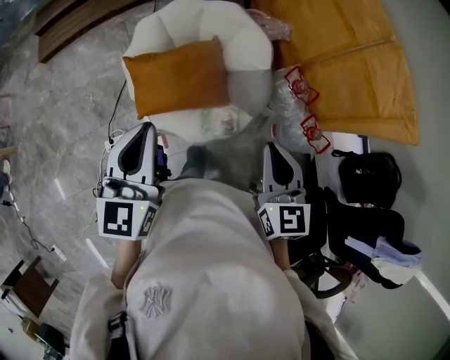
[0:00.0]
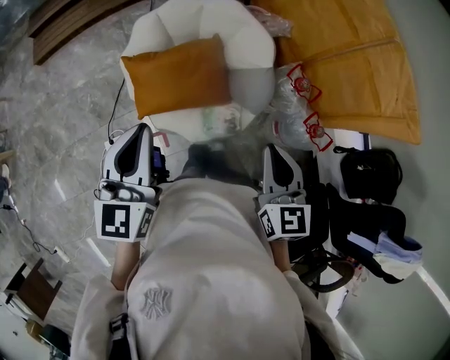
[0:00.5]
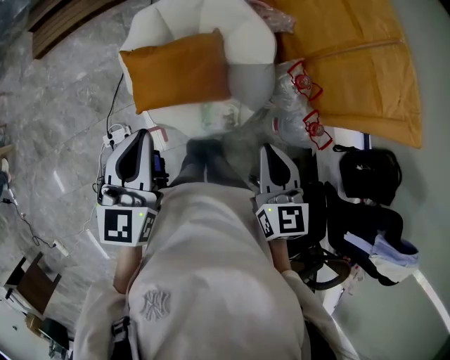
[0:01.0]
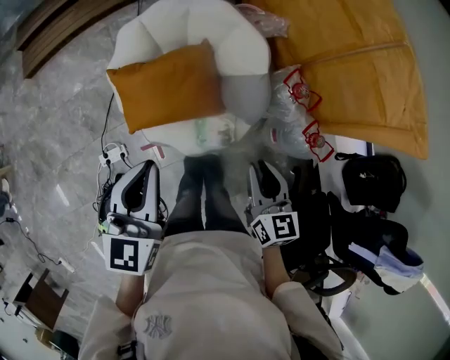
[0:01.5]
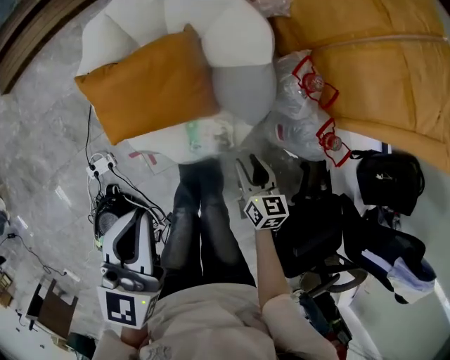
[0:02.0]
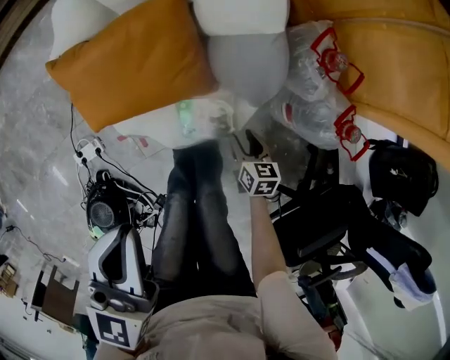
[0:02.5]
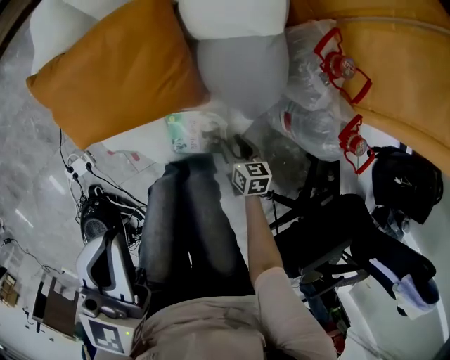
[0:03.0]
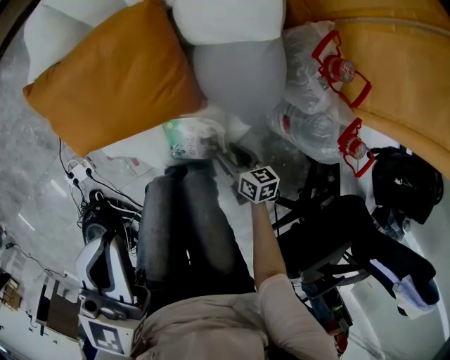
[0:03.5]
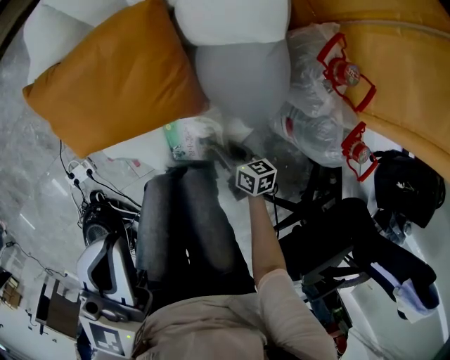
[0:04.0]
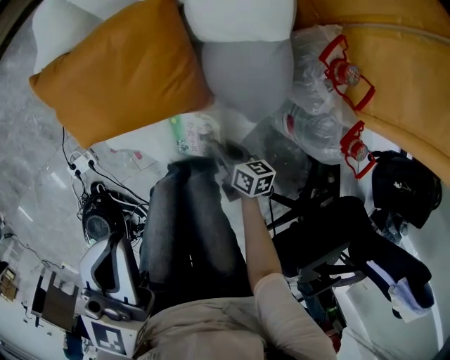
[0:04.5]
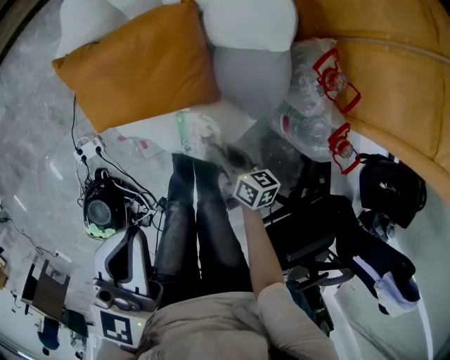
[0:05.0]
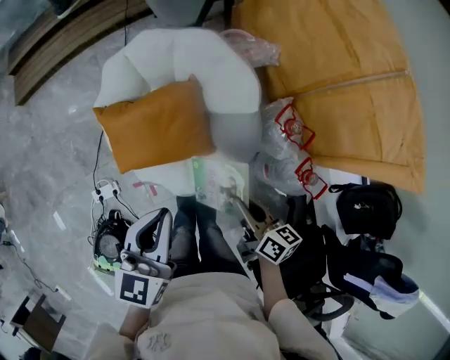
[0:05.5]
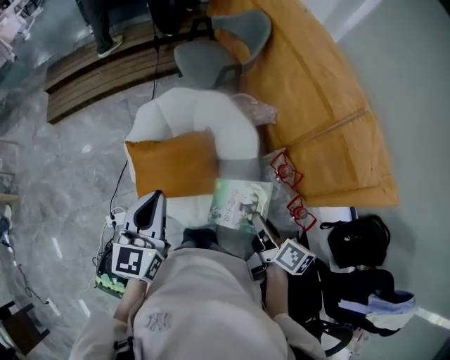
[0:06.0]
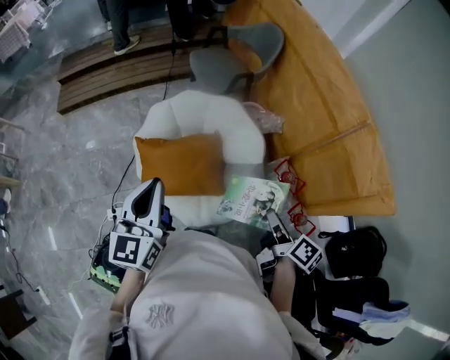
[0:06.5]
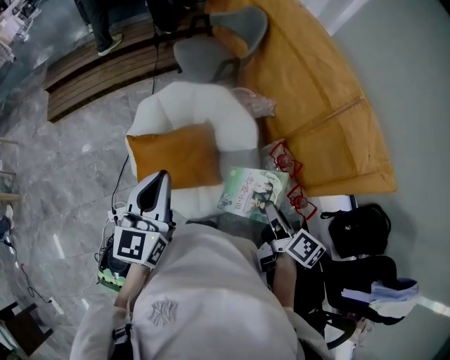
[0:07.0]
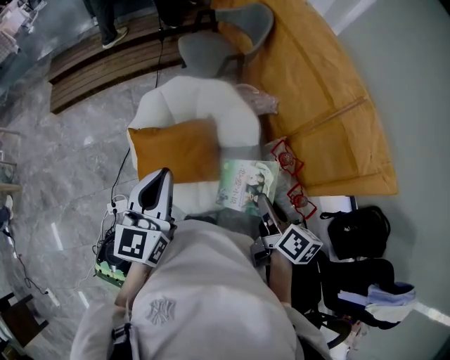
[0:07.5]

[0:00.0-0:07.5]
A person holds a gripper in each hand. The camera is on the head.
0:00.0 to 0:02.0: The right gripper goes some 35 cm downward, rotates approximately 30 degrees, and opens its fingers. The left gripper heads downward, covering some 15 cm.
0:02.0 to 0:04.0: The right gripper is displaced downward by about 30 cm, and turns by approximately 30 degrees, while the left gripper moves downward, some 15 cm.
0:04.0 to 0:05.5: The right gripper heads upward, covering some 40 cm, while the left gripper moves upward, about 15 cm.
0:05.5 to 0:07.5: The two grippers go some 20 cm upward.

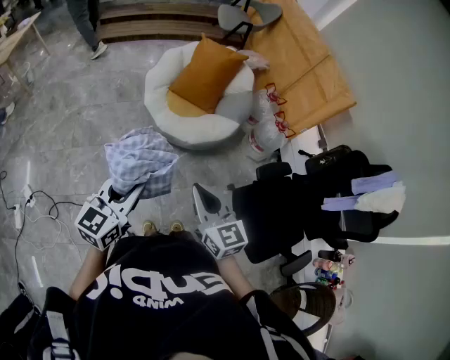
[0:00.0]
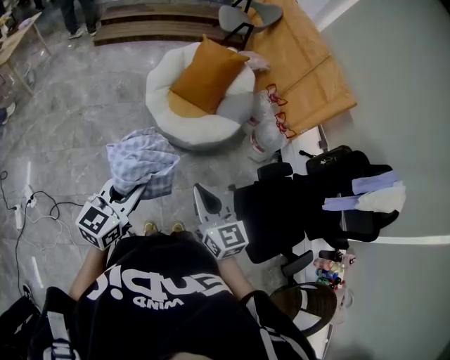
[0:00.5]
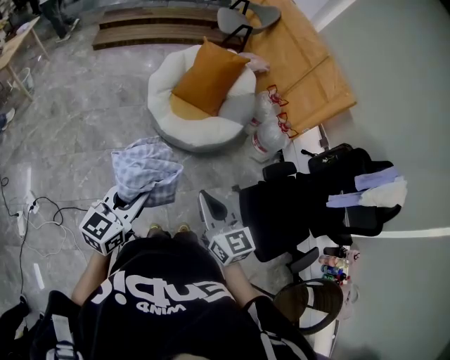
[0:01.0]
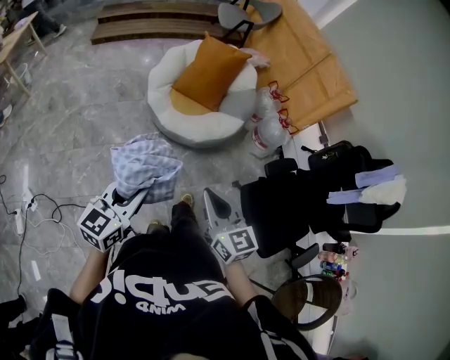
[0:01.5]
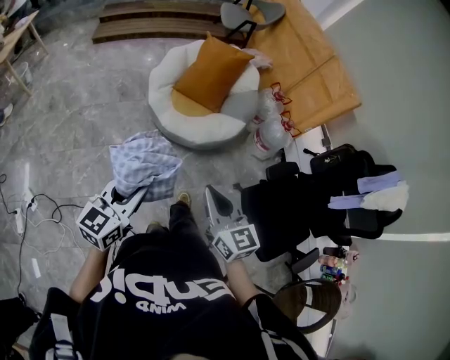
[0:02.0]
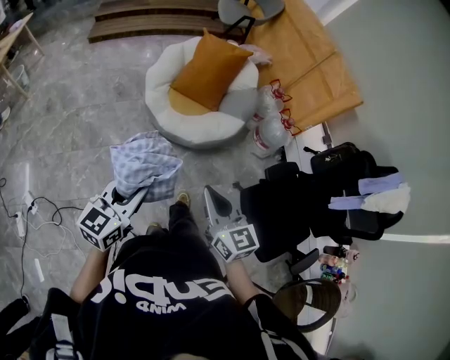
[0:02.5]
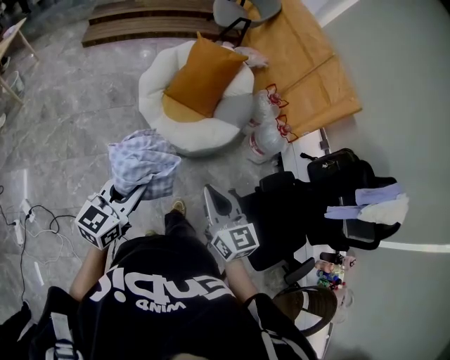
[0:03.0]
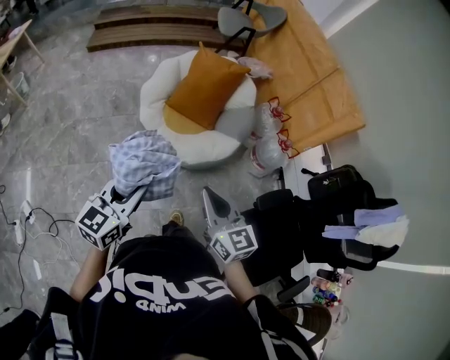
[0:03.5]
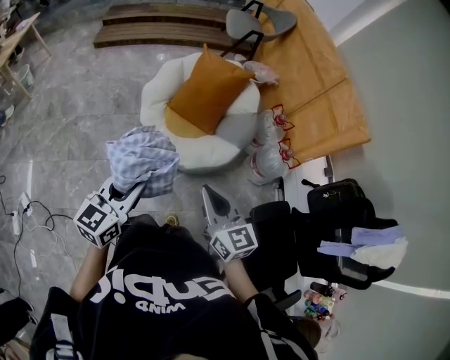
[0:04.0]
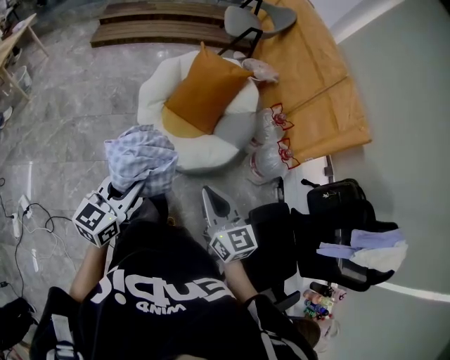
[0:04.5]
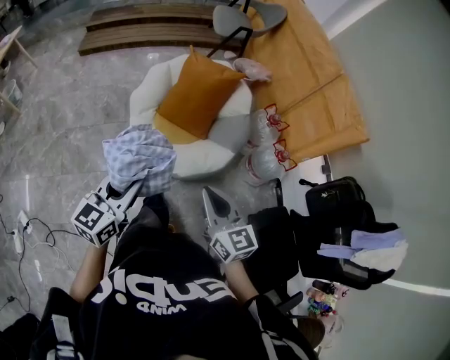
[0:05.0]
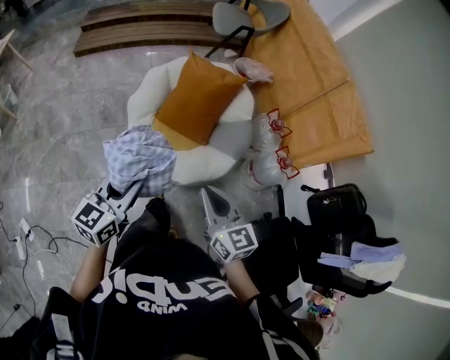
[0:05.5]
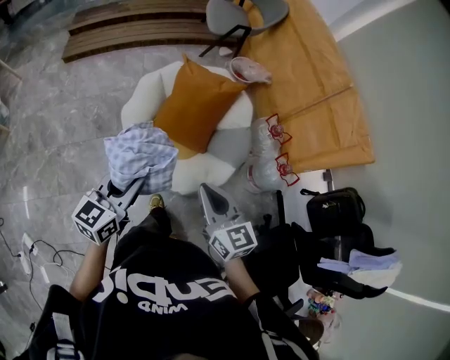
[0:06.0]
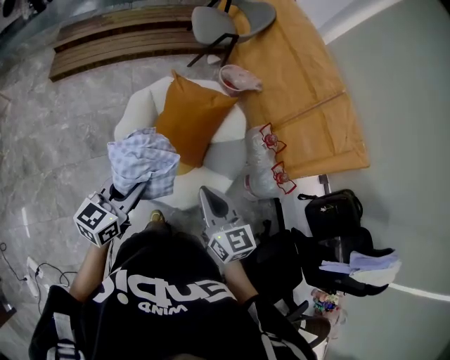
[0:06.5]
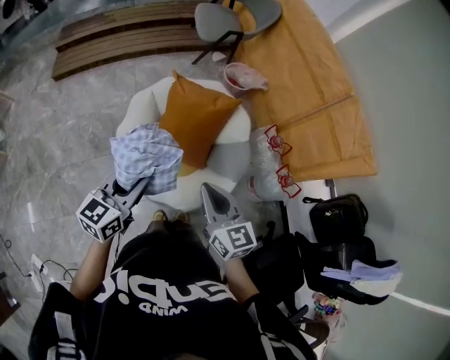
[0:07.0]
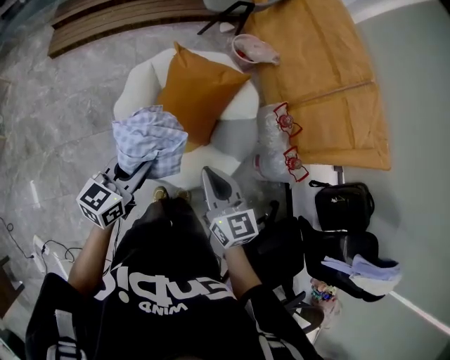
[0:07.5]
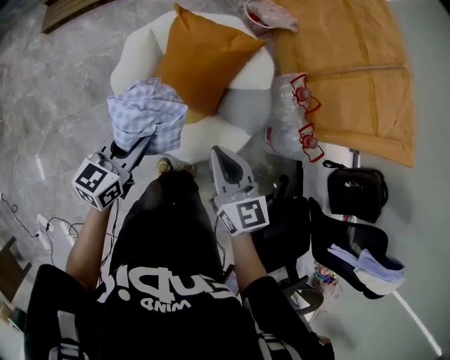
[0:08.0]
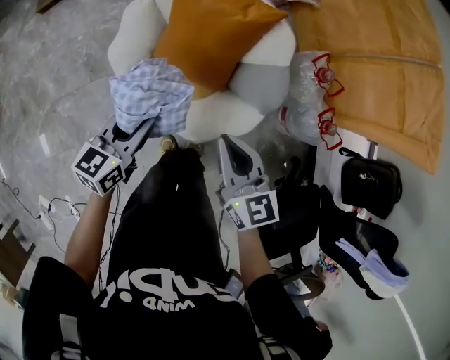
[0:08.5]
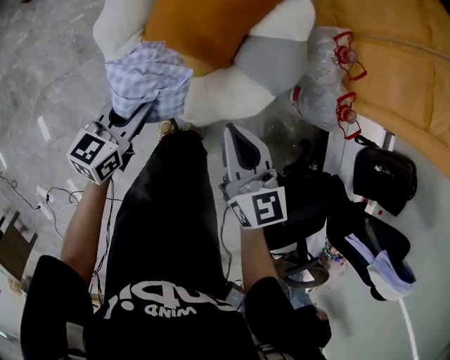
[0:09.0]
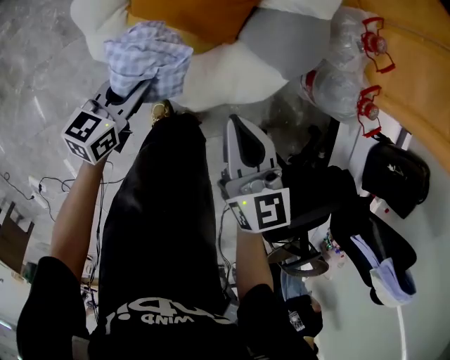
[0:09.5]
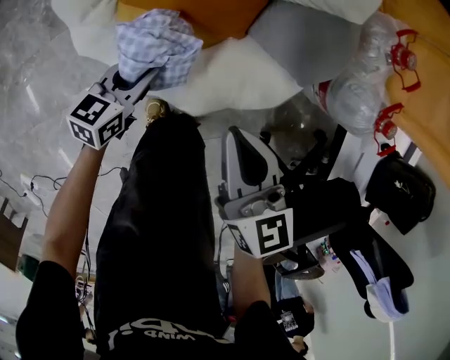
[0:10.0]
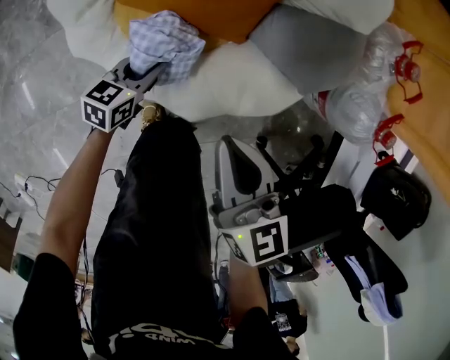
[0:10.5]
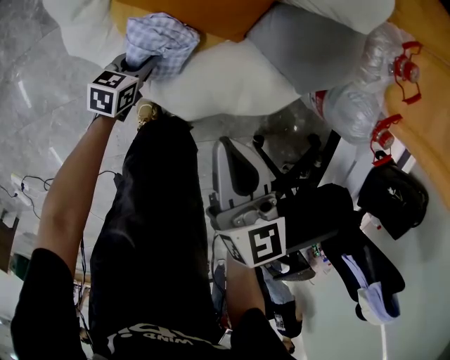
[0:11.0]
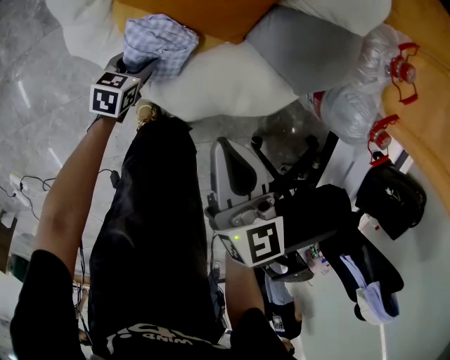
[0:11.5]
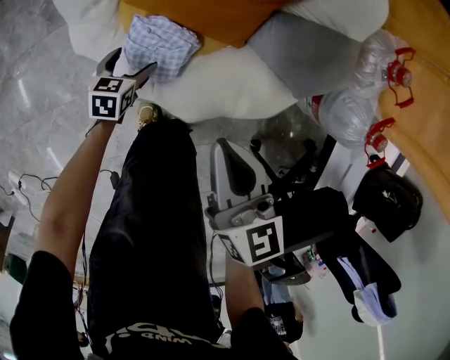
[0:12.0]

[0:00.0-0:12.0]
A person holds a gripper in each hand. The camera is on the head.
0:00.0 to 0:02.0: The left gripper shifts about 5 cm to the left.
0:02.0 to 0:04.0: The grippers both shift forward by approximately 20 cm.
0:04.0 to 0:06.0: Both grippers travel together forward, roughly 30 cm.
0:06.0 to 0:08.0: The grippers both shift forward and downward by roughly 20 cm.
0:08.0 to 0:10.0: Both grippers move downward, approximately 40 cm.
0:10.0 to 0:12.0: The left gripper shifts approximately 15 cm downward and to the left, changes its angle by roughly 30 degrees, and opens.

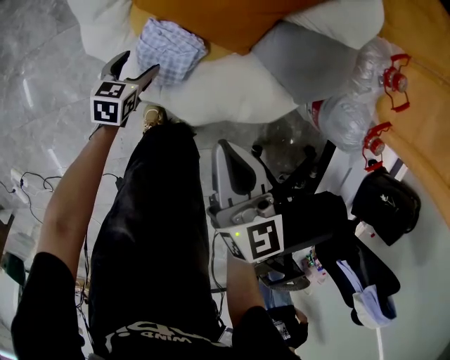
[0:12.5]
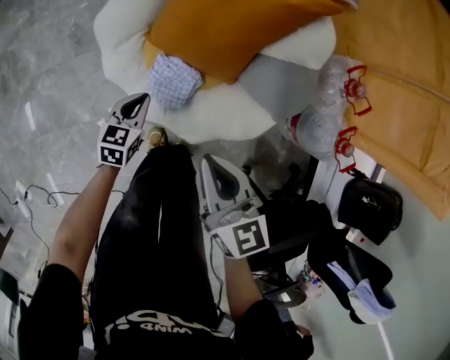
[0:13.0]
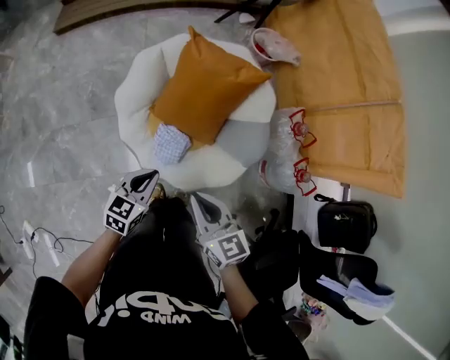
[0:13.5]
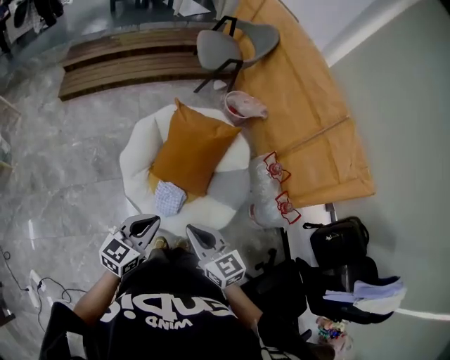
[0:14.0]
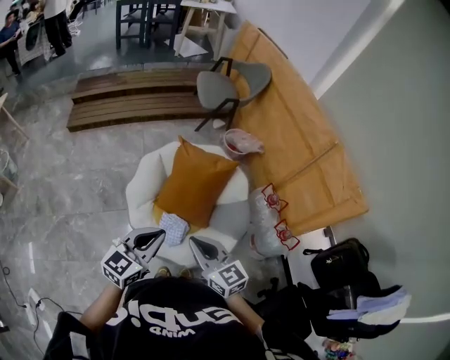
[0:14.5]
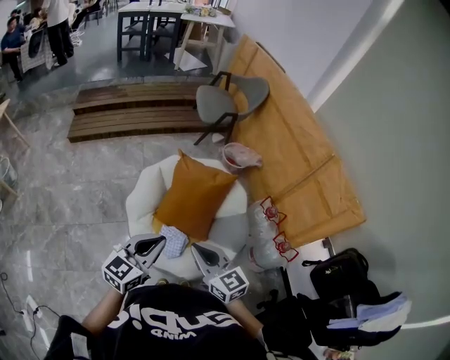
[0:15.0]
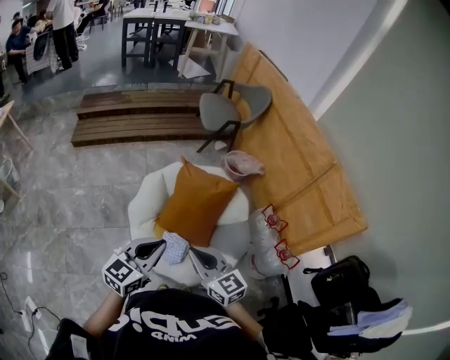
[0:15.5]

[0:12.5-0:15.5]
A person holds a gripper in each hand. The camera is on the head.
0:12.5 to 0:14.0: The left gripper shifts some 60 cm upward, tips its fingers upward by about 40 degrees, and closes its fingers; the right gripper travels upward by about 35 cm, and rotates about 20 degrees.
0:14.0 to 0:15.5: The right gripper shifts roughly 5 cm upward; the left gripper heads upward, covering some 10 cm.

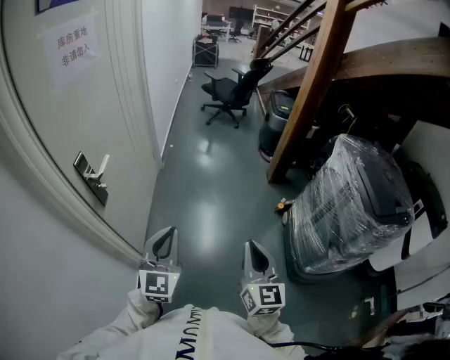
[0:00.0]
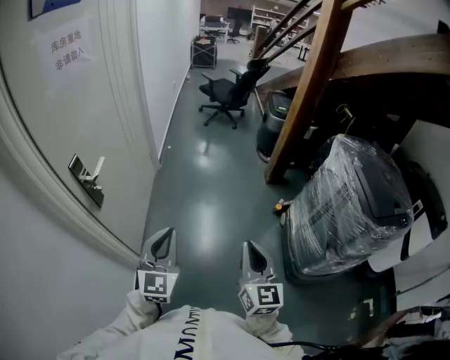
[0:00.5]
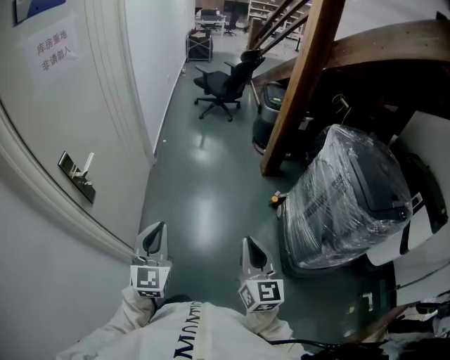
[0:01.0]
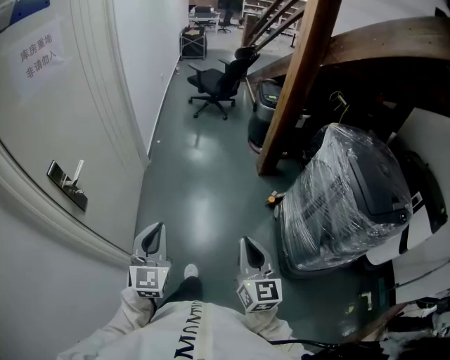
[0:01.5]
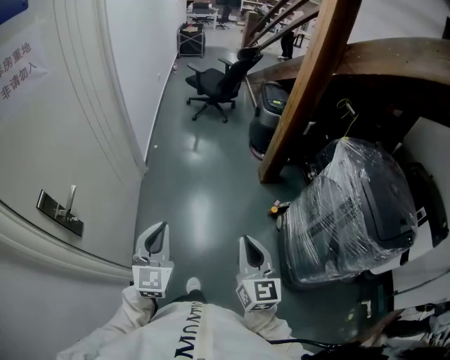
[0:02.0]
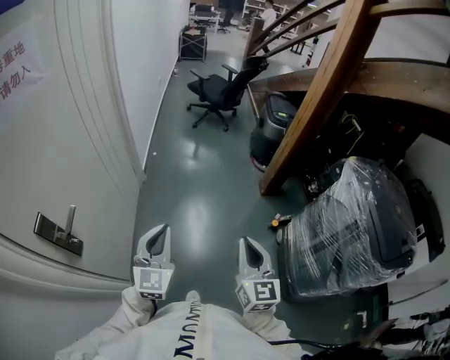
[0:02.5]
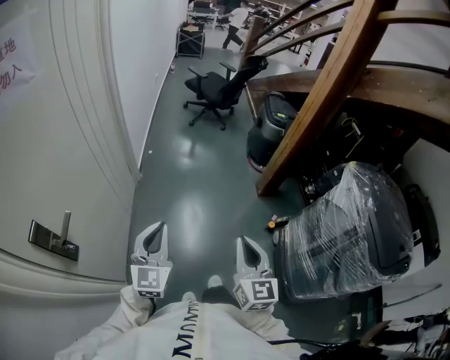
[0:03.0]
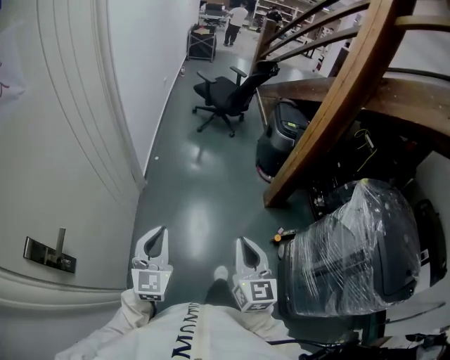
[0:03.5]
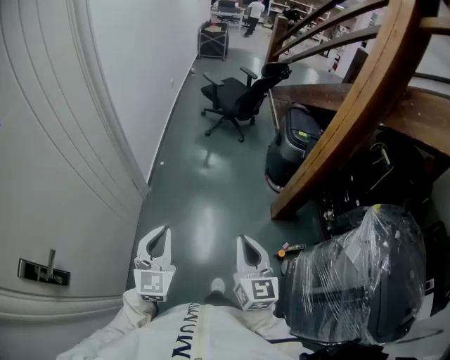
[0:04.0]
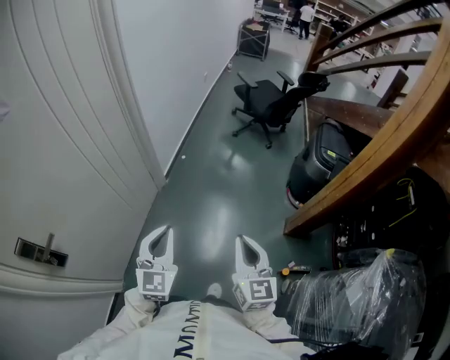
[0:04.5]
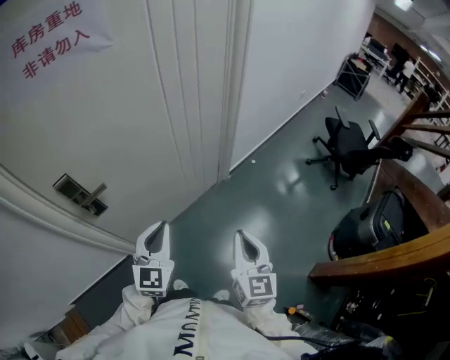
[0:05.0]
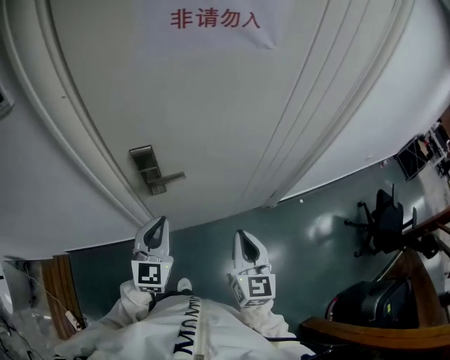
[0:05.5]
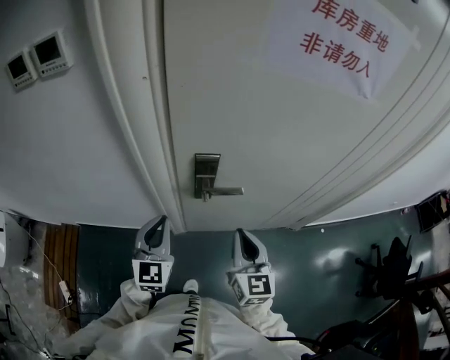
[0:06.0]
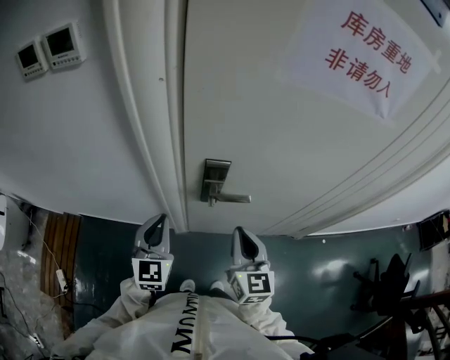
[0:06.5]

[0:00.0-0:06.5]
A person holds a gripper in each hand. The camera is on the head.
0:00.0 to 0:02.0: The grippers both shift forward by roughly 15 cm.
0:02.0 to 0:04.5: Both grippers travel together forward, approximately 35 cm. The right gripper swivels approximately 20 degrees.
0:04.5 to 0:06.5: The two grippers travel together, about 60 cm. The right gripper turns by roughly 70 degrees, while the left gripper turns by some 80 degrees.
